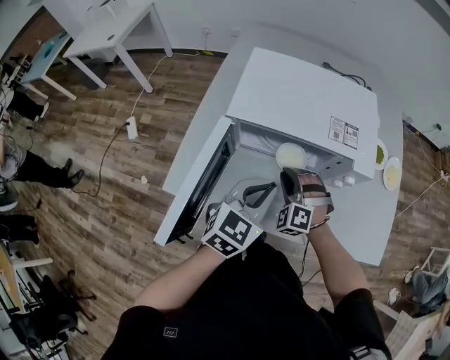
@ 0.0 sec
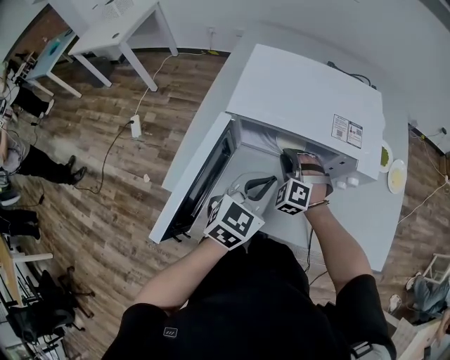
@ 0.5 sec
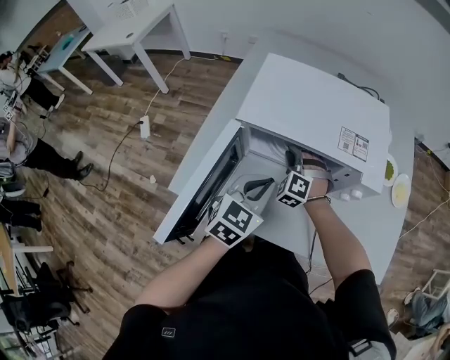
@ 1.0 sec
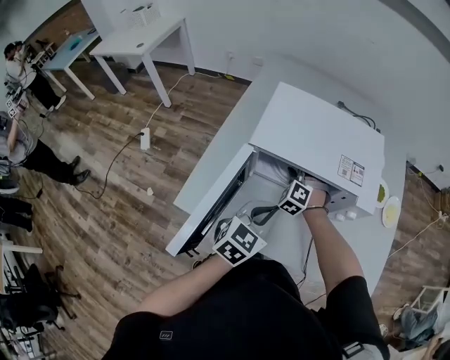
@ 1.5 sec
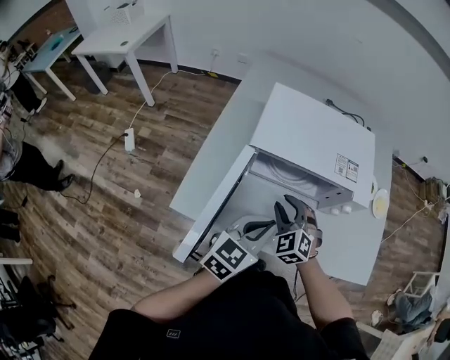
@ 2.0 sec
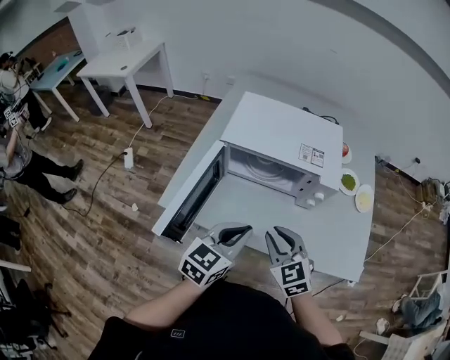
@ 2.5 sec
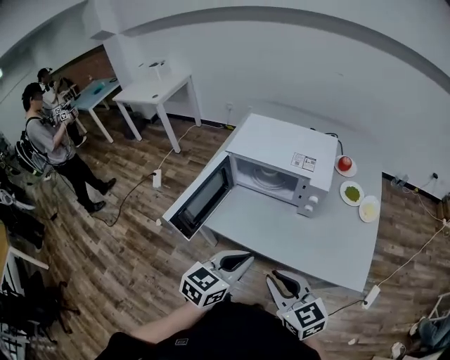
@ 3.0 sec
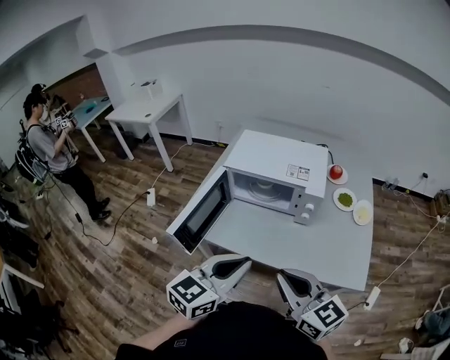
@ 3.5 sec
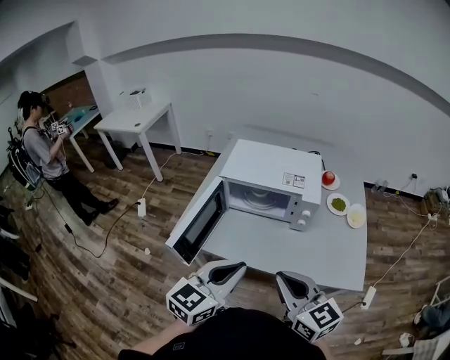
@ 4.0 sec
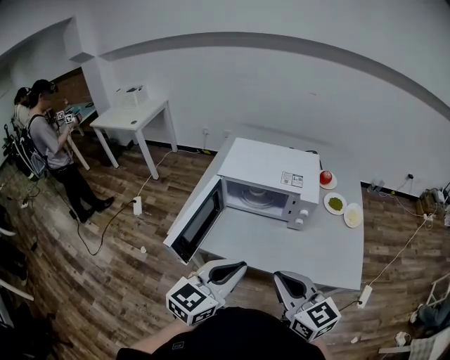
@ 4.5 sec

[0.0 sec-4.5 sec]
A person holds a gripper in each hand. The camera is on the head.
0.0 sec to 2.0 sec: The left gripper ends up roughly 5 cm from where it was. The right gripper goes about 5 cm upward, goes forward and returns, about 10 cm each way, and changes its angle by some 20 degrees.
2.0 sec to 4.5 sec: The right gripper heads backward, upward and to the right, covering approximately 40 cm, swivels about 50 degrees, and closes its fingers; the left gripper shifts some 25 cm backward and upward.

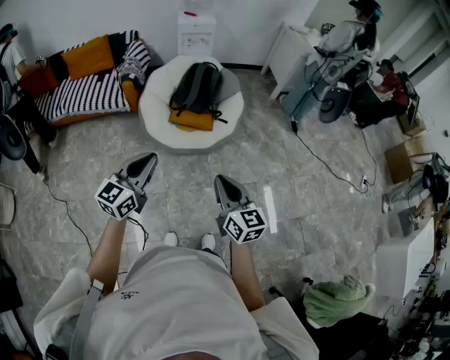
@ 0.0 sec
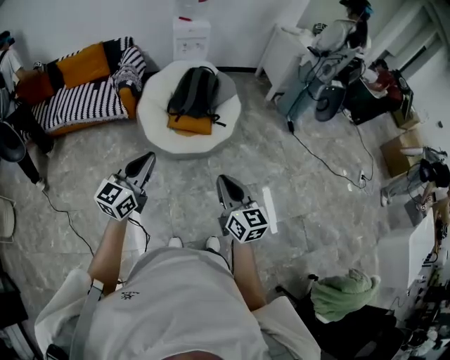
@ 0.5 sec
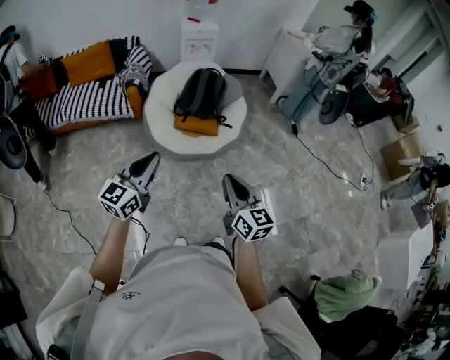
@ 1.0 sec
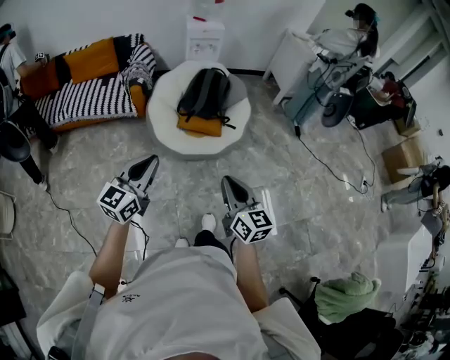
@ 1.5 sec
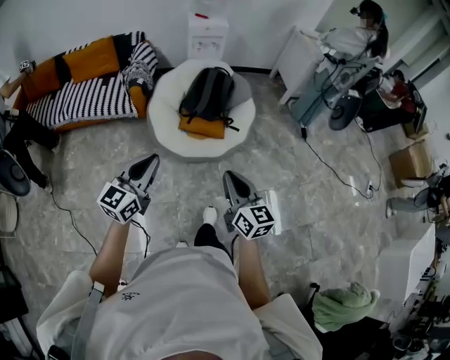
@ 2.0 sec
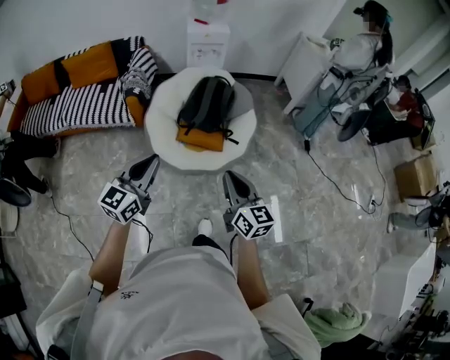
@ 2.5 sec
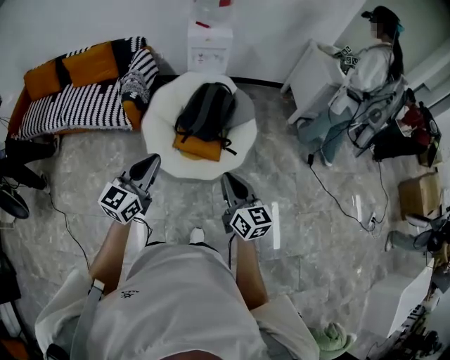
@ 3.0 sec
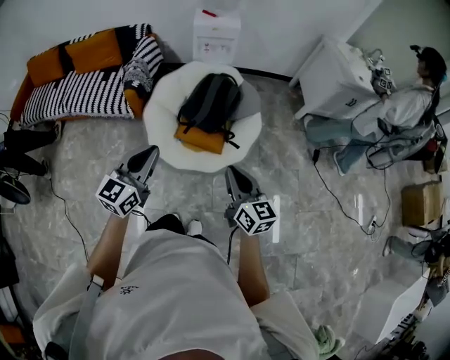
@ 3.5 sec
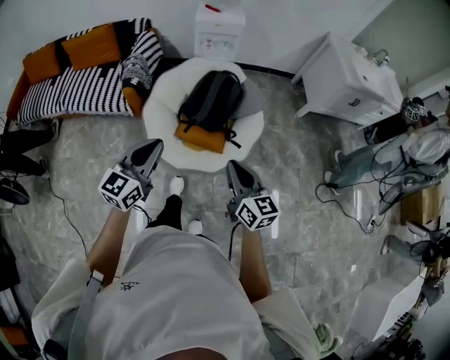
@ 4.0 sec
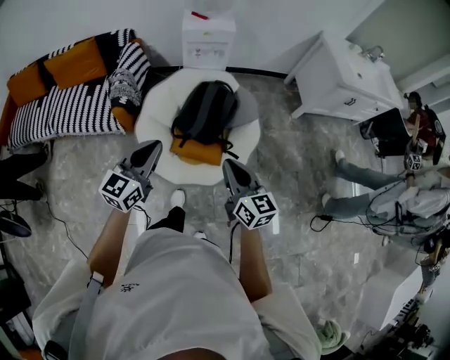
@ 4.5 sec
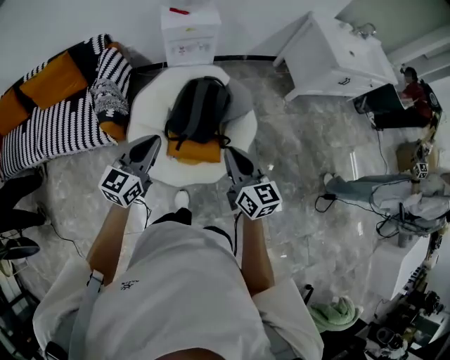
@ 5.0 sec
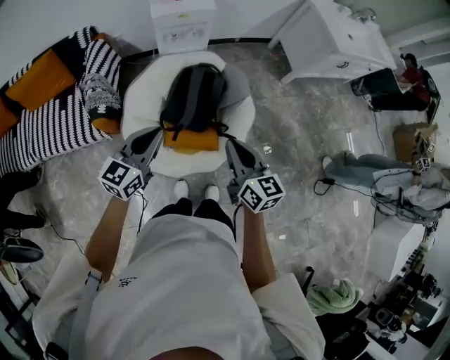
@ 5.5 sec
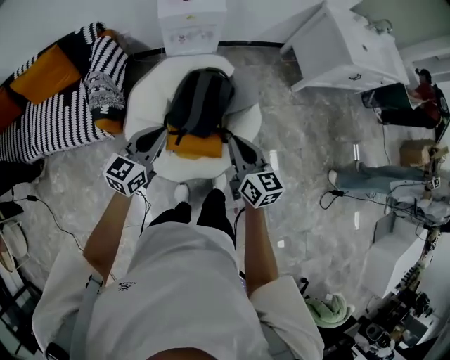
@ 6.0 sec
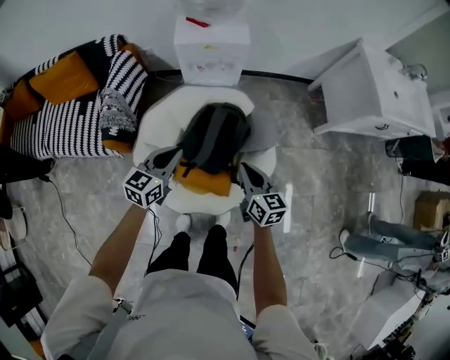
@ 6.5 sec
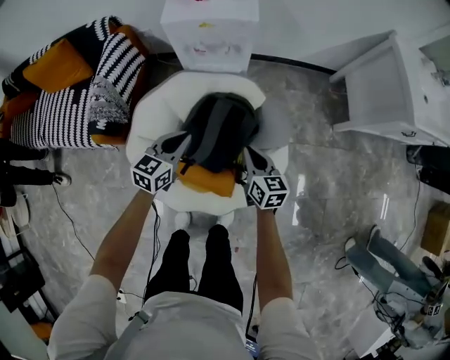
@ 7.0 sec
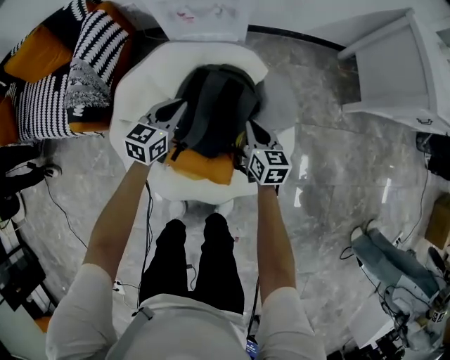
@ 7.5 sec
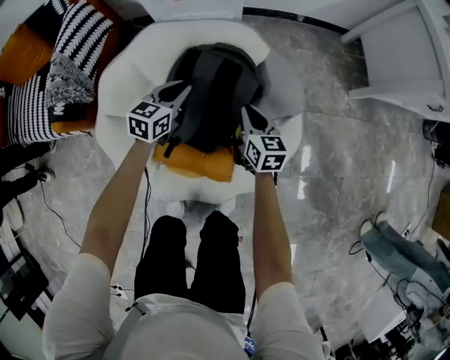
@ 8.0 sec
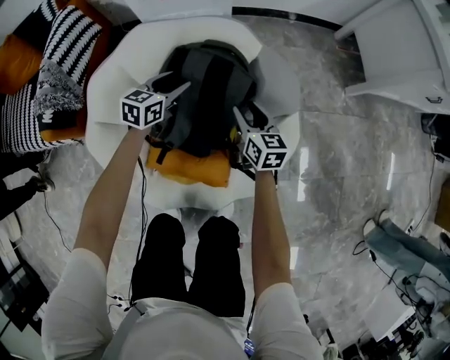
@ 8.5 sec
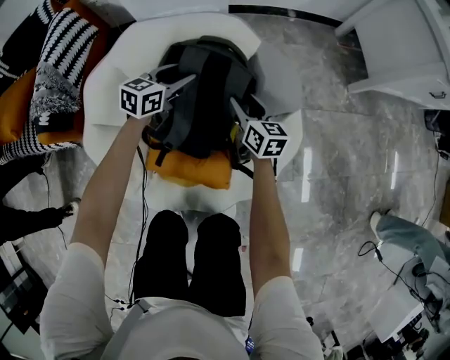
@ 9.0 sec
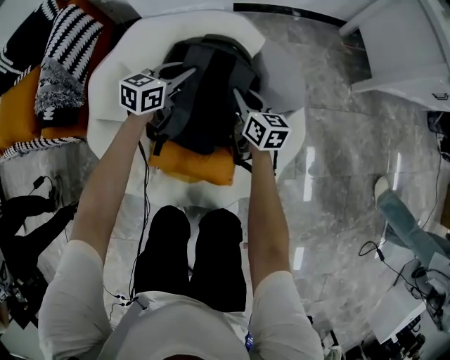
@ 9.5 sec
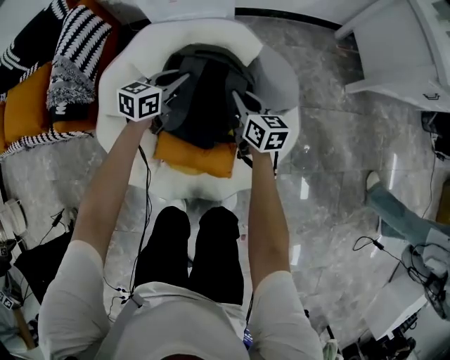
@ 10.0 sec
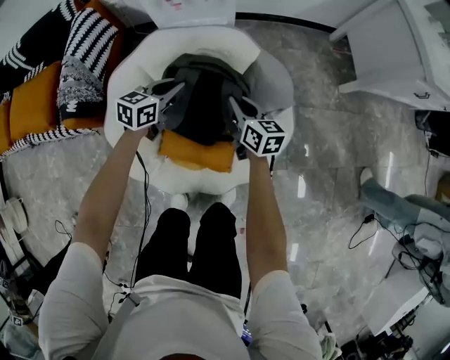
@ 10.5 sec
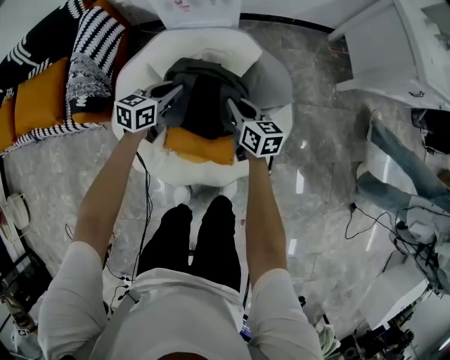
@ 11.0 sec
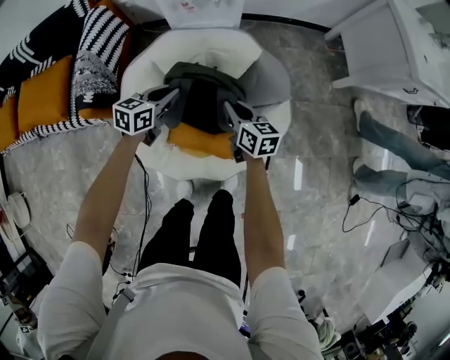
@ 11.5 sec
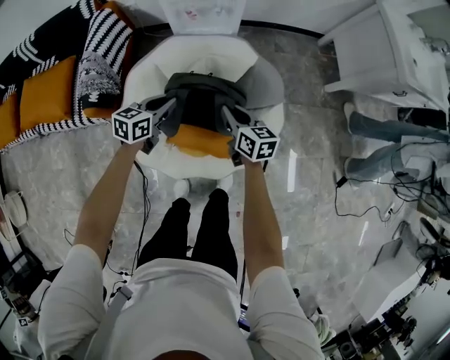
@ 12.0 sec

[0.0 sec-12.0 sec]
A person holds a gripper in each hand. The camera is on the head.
0.0 sec to 2.0 sec: The left gripper travels to the left and forward by roughly 10 cm; the right gripper moves forward and to the left, approximately 10 cm.
2.0 sec to 4.0 sec: The grippers both shift forward by approximately 30 cm.
4.0 sec to 6.0 sec: Both grippers travel together forward, about 30 cm.
6.0 sec to 8.0 sec: The two grippers go about 50 cm downward and forward. The left gripper turns by approximately 20 degrees.
8.0 sec to 10.0 sec: The right gripper reaches roughly 5 cm downward, then returns, and opens, then closes once more, while the left gripper opens, then closes again.
10.0 sec to 12.0 sec: The left gripper travels upward, backward and to the left by about 20 cm. Meanwhile the right gripper shifts roughly 20 cm upward and backward.

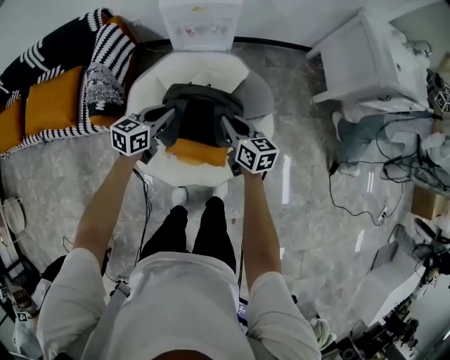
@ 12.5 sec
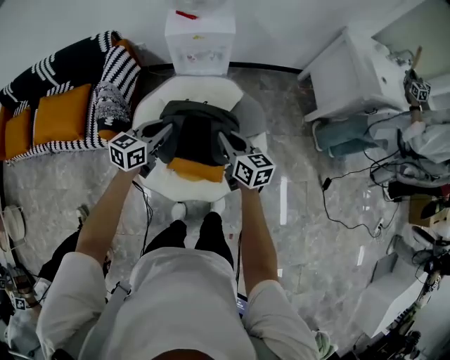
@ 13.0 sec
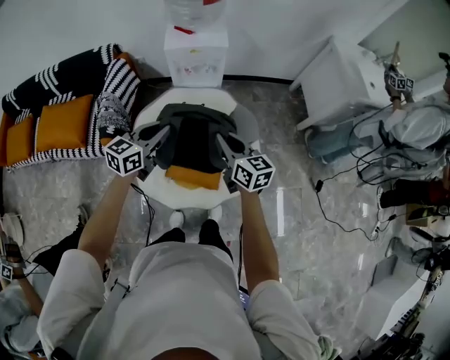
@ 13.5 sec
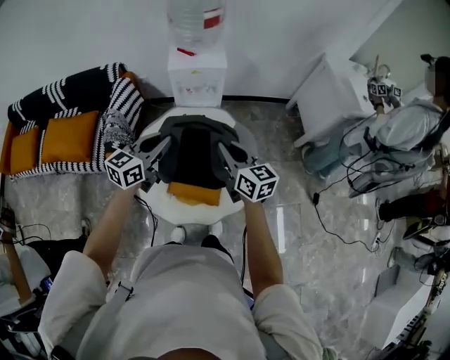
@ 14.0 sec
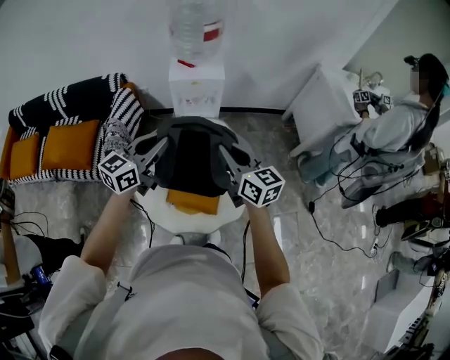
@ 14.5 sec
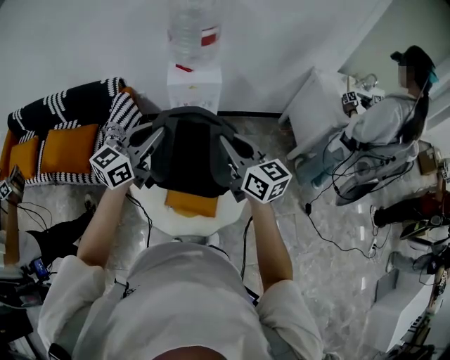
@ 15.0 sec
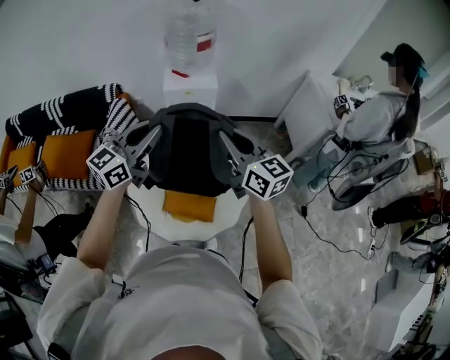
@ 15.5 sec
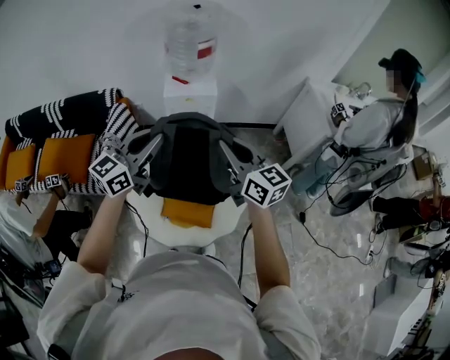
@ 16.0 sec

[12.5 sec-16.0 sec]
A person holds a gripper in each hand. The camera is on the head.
12.5 sec to 14.5 sec: The grippers both shift upward by approximately 30 cm. The left gripper changes its angle by some 30 degrees. The right gripper rotates approximately 20 degrees.
14.5 sec to 16.0 sec: Both grippers travel together upward, about 10 cm.

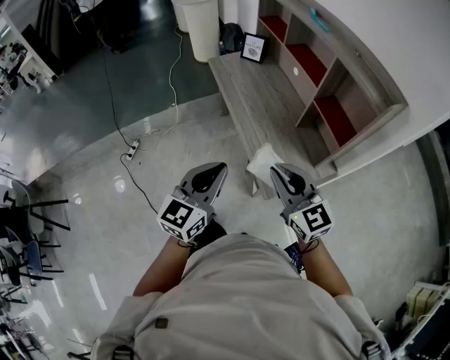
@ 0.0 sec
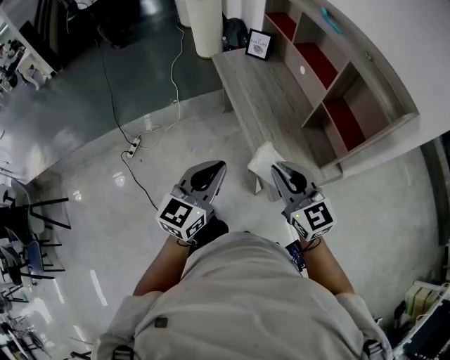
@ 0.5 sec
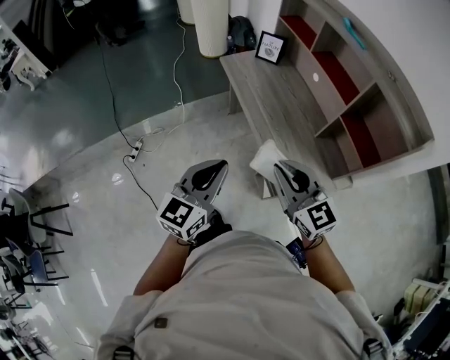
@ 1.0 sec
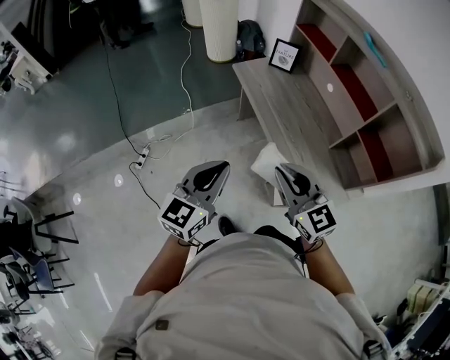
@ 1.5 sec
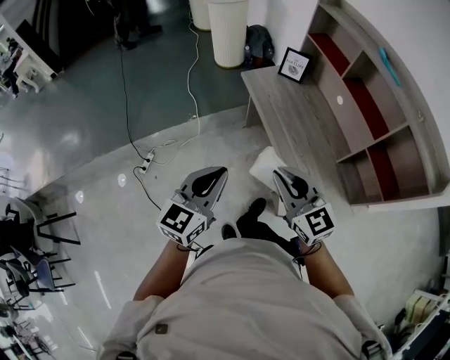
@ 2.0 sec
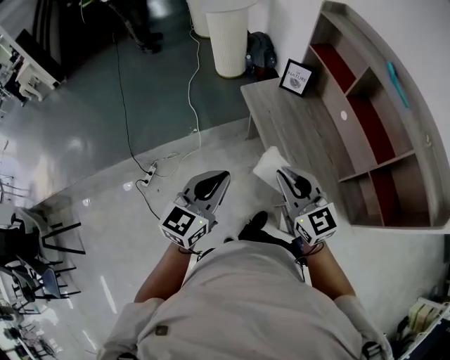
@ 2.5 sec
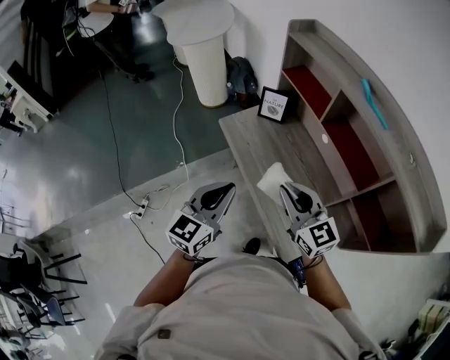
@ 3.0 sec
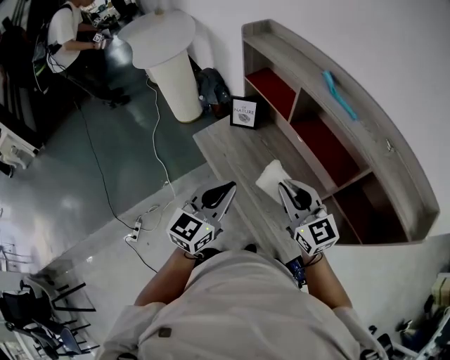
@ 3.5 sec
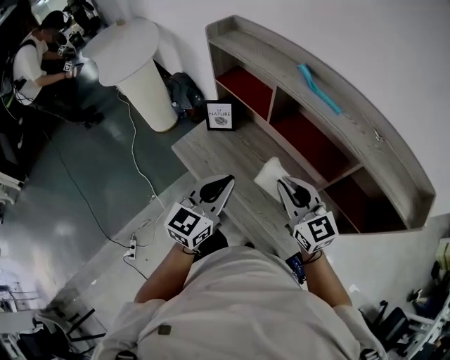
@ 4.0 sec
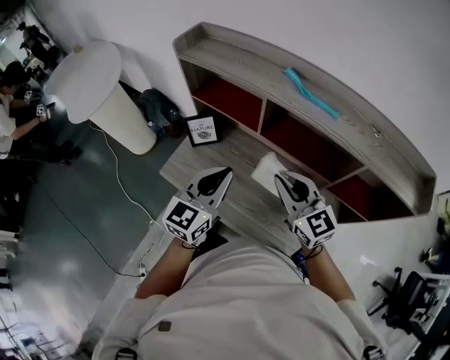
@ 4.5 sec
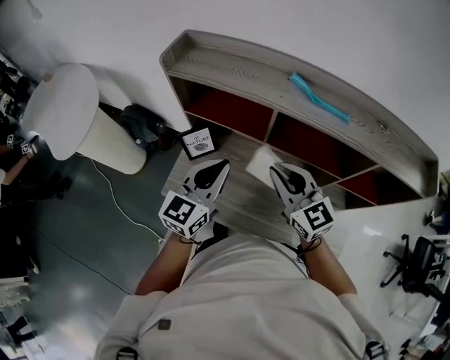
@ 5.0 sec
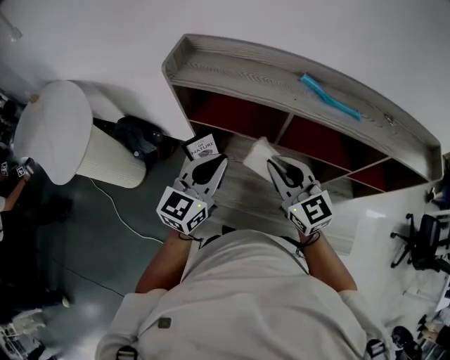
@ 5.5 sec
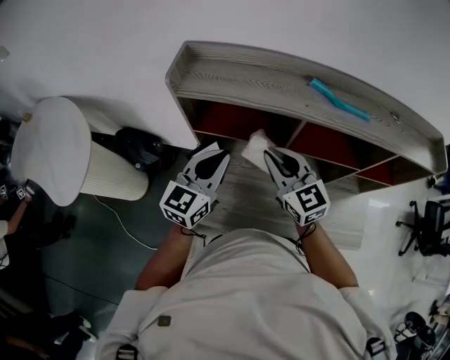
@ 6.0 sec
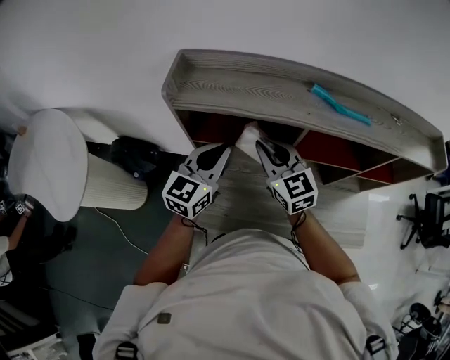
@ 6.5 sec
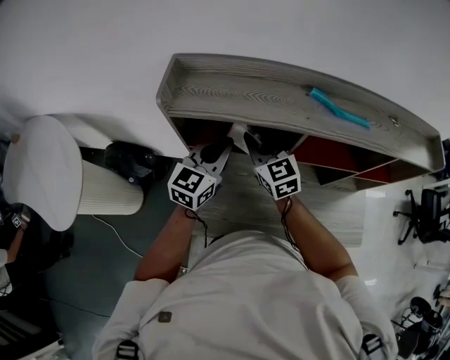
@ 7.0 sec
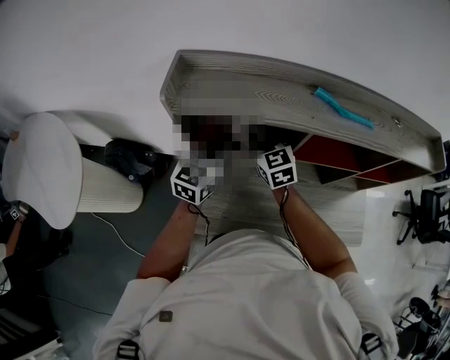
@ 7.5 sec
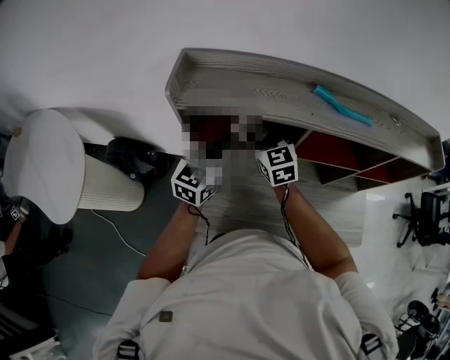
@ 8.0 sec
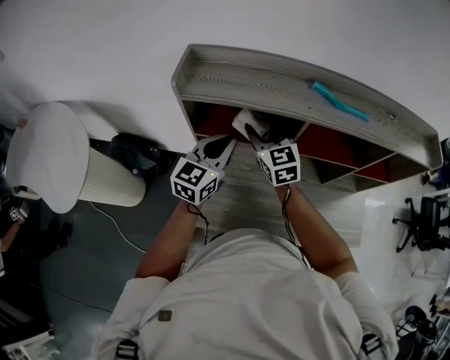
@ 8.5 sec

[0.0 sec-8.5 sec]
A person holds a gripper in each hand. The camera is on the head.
0.0 sec to 2.0 sec: The right gripper is displaced forward and to the left by roughly 30 cm. The left gripper heads to the left and forward, covering roughly 30 cm.
2.0 sec to 4.0 sec: The left gripper shifts by some 40 cm, and changes its angle by approximately 30 degrees, while the right gripper ends up roughly 35 cm from where it was, and rotates roughly 30 degrees.
4.0 sec to 6.5 sec: The left gripper moves about 35 cm, and turns by about 30 degrees. The right gripper shifts by about 35 cm, and rotates about 40 degrees.
6.5 sec to 8.5 sec: The right gripper opens.
